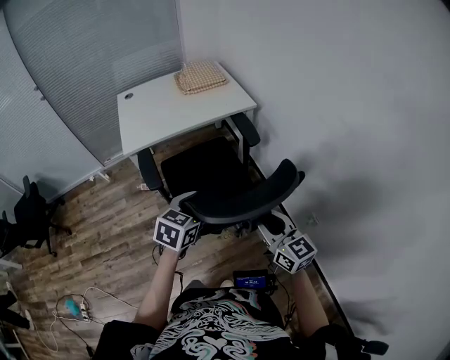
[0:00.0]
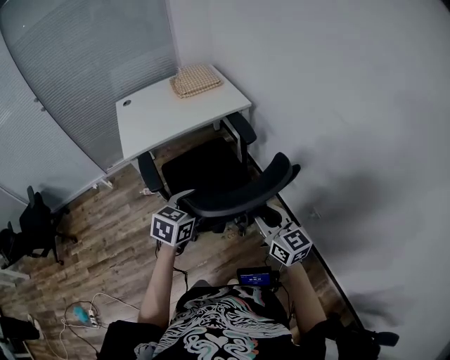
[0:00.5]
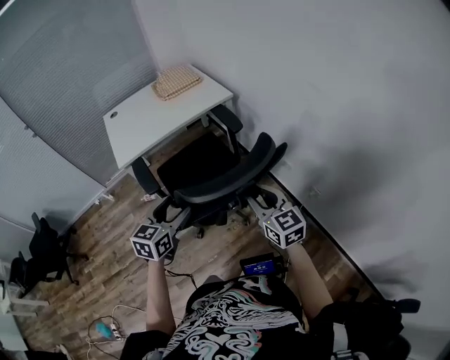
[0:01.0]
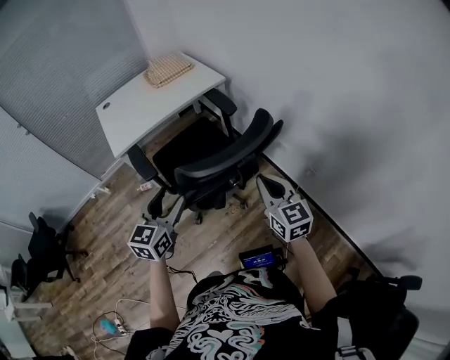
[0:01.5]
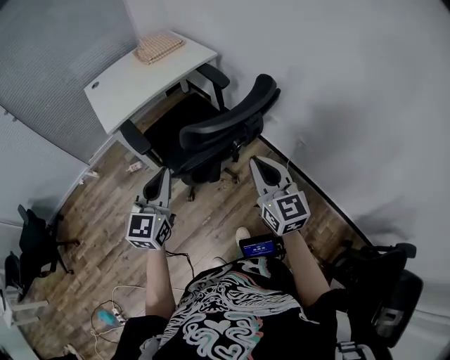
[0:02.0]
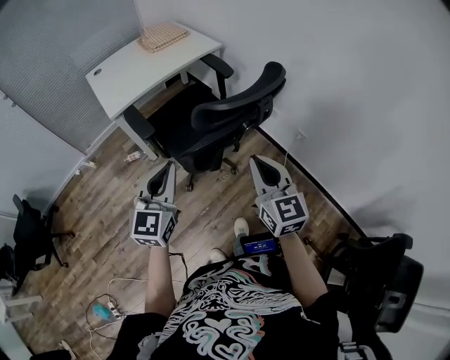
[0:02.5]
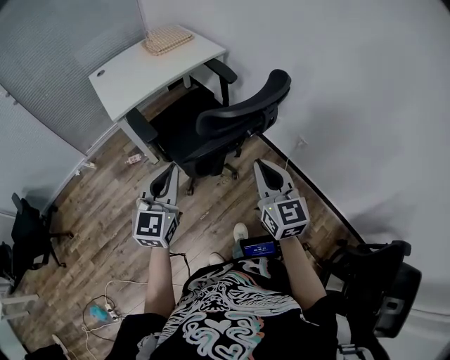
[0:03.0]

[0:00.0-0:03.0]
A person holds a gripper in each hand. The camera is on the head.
0:00.0 to 0:01.5: The left gripper goes some 10 cm backward and to the left; the right gripper travels backward by about 5 cm, turns by approximately 20 degrees, and closes up.
0:01.5 to 0:03.0: The right gripper is displaced backward and to the left by some 15 cm, while the left gripper is displaced backward by approximately 10 cm, and closes.

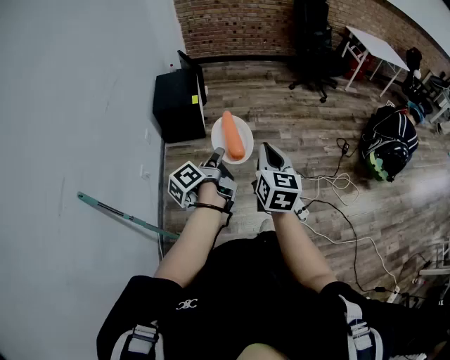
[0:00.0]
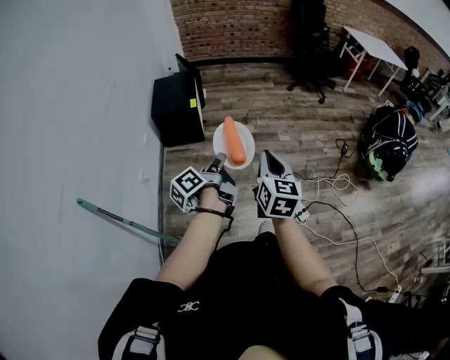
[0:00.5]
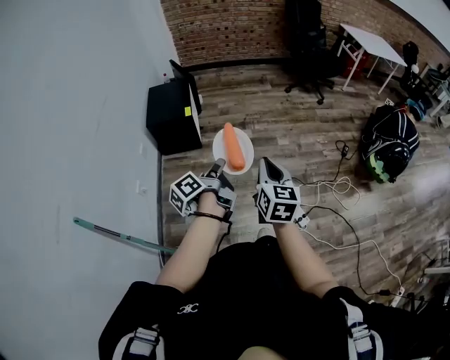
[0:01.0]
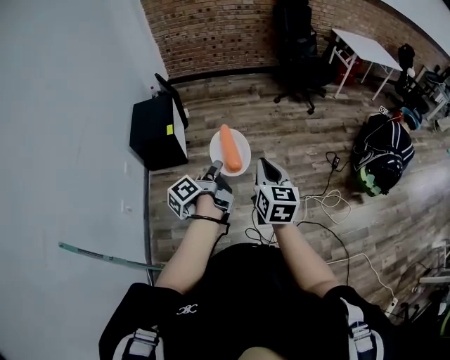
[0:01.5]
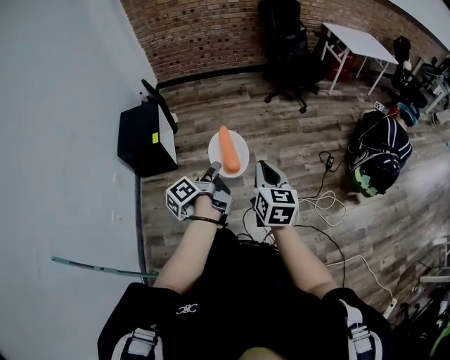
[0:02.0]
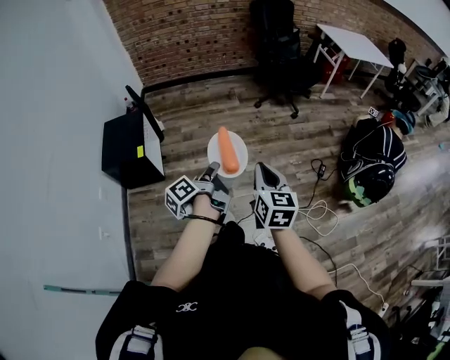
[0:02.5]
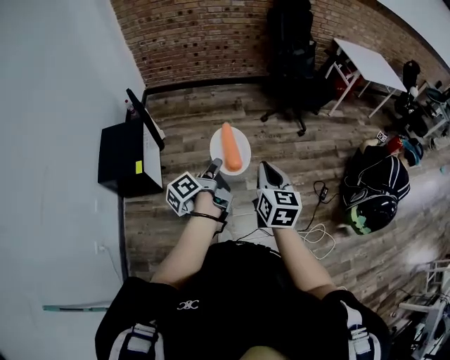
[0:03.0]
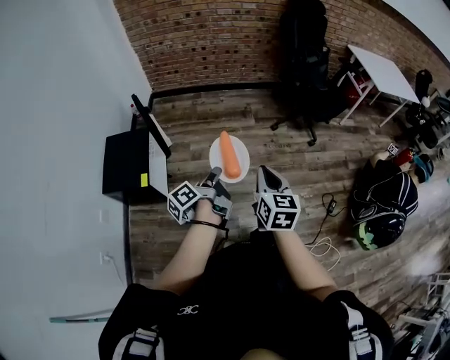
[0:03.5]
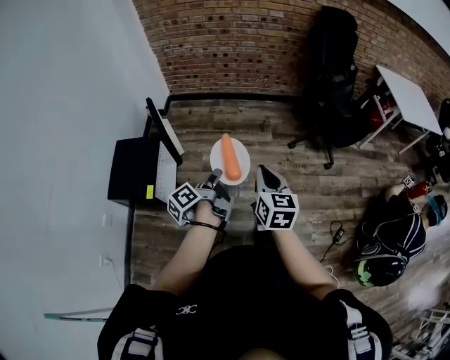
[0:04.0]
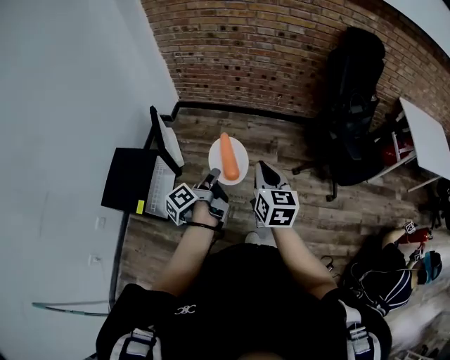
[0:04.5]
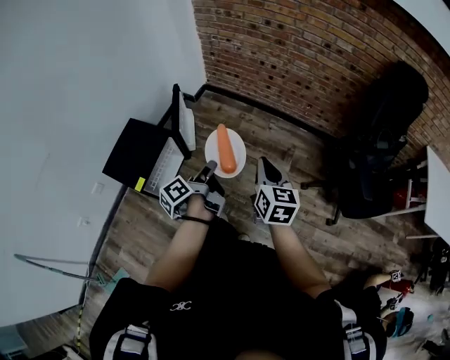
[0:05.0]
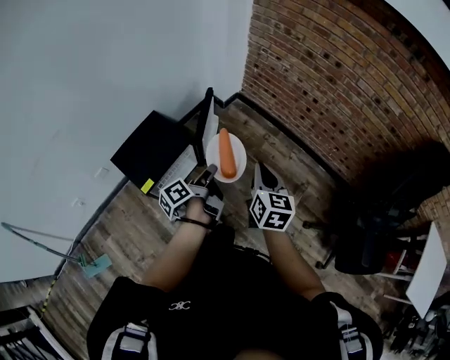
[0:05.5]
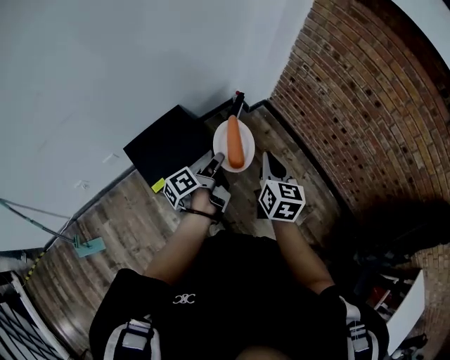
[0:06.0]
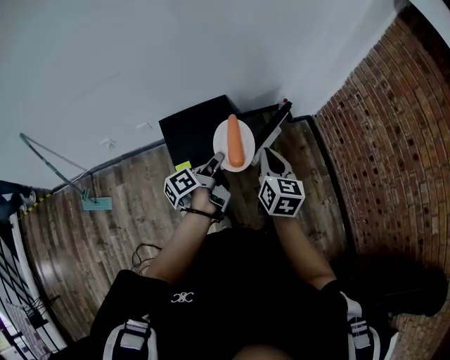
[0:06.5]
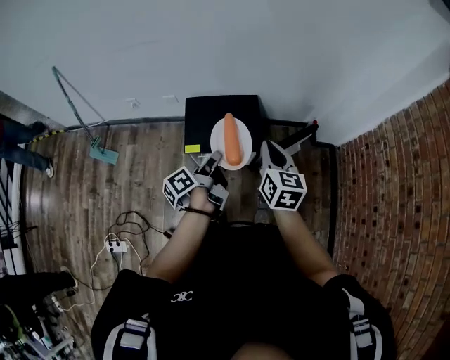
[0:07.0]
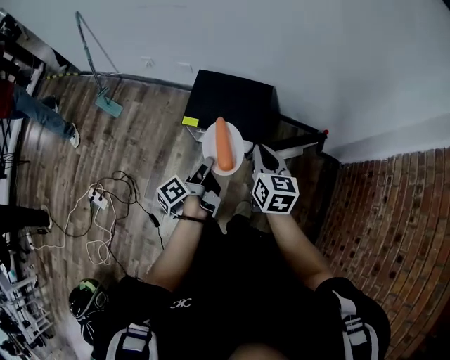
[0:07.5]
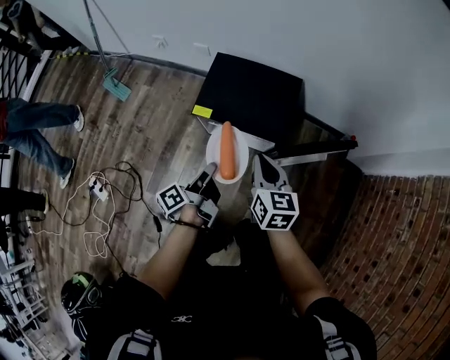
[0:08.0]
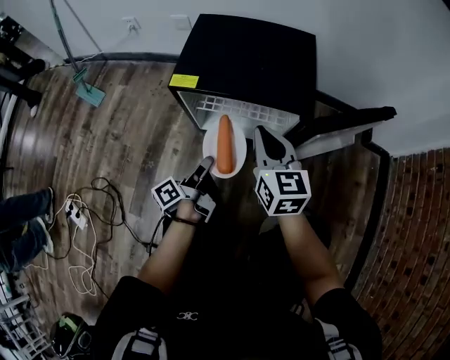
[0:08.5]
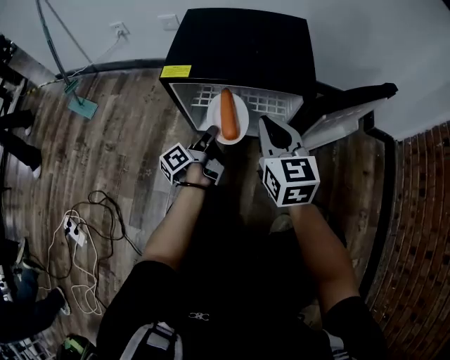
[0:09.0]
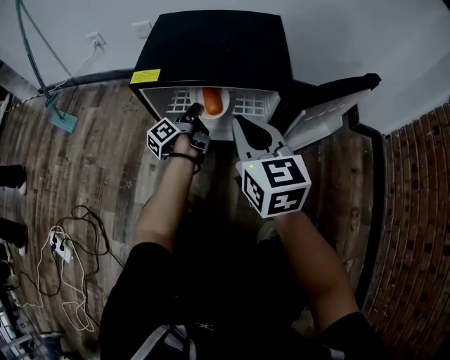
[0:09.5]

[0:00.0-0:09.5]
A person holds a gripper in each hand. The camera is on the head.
0:00.0 to 0:02.0: The right gripper moves approximately 30 cm.
0:02.0 to 0:04.0: The right gripper changes place by roughly 50 cm.
0:04.0 to 0:05.5: The right gripper moves approximately 40 cm, and changes its angle by about 30 degrees.
0:05.5 to 0:07.5: The right gripper ends up approximately 30 cm from where it was, and changes its angle by some 70 degrees.
0:07.5 to 0:09.5: The right gripper shifts roughly 35 cm downward.

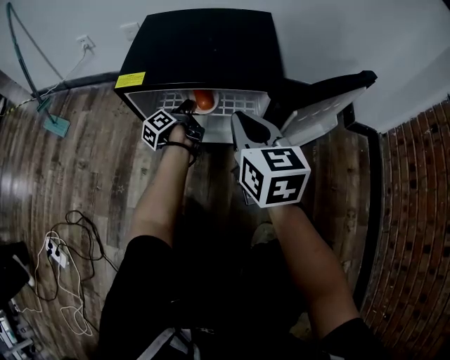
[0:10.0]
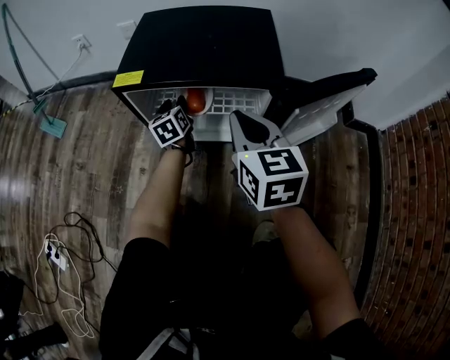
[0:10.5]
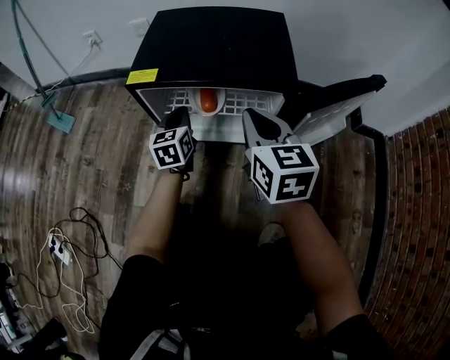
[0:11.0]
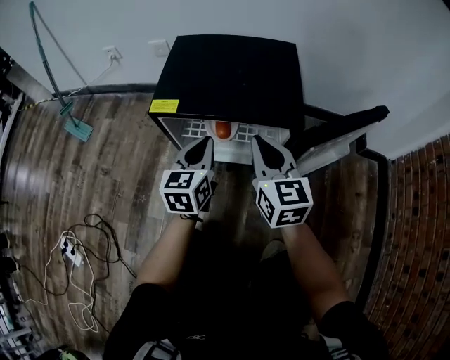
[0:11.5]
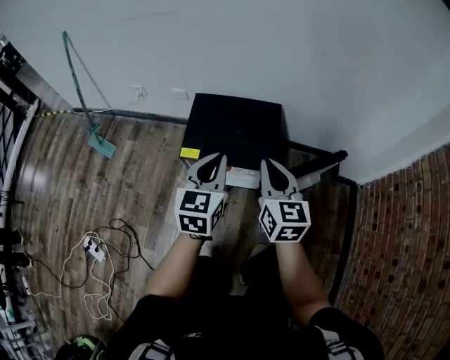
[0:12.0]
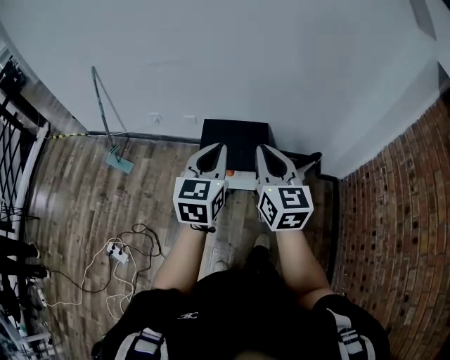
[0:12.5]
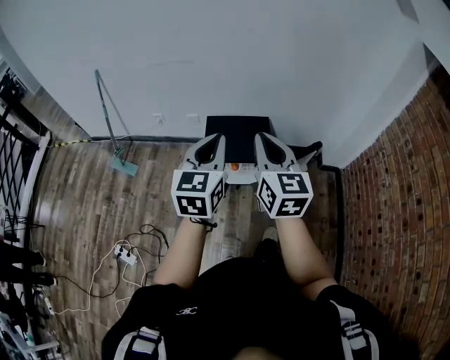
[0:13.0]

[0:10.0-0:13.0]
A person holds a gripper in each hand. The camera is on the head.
0:11.5 to 0:13.0: The right gripper travels upward by some 60 cm.

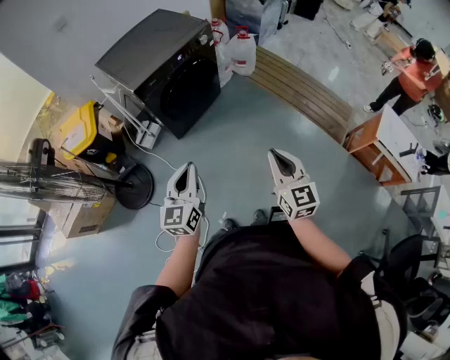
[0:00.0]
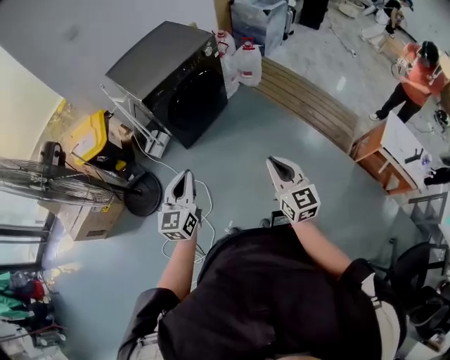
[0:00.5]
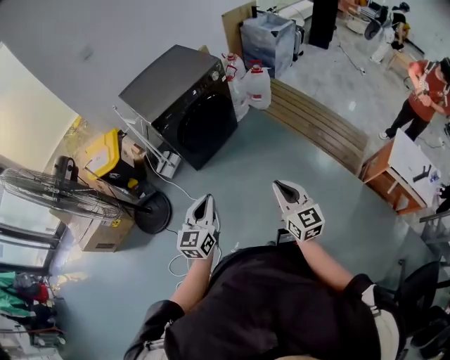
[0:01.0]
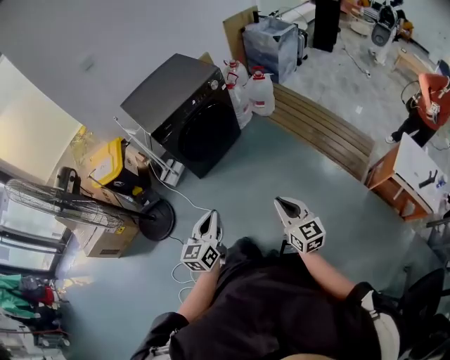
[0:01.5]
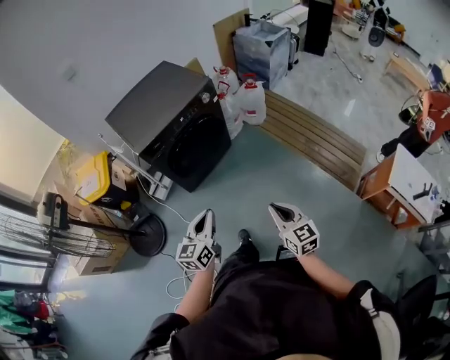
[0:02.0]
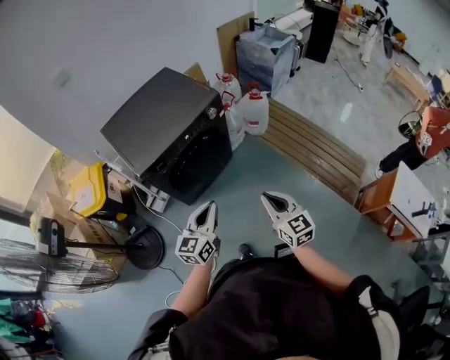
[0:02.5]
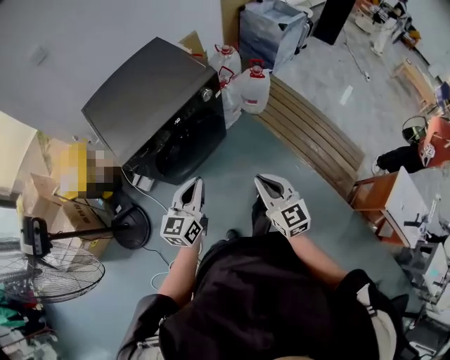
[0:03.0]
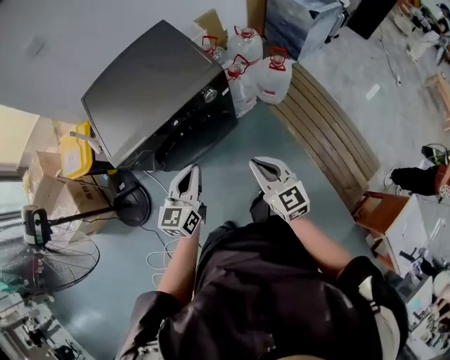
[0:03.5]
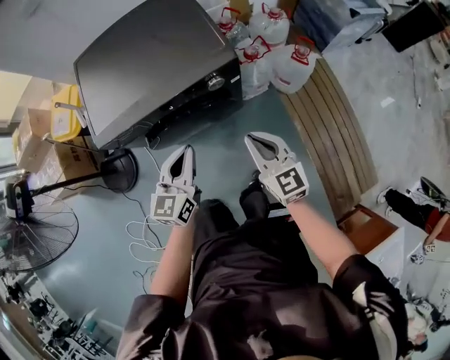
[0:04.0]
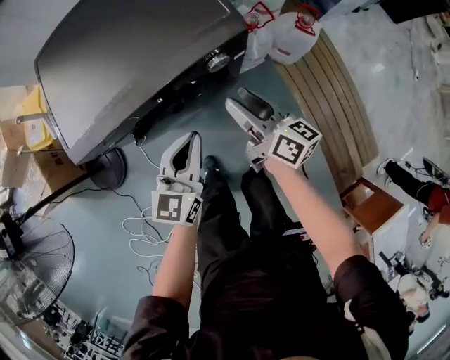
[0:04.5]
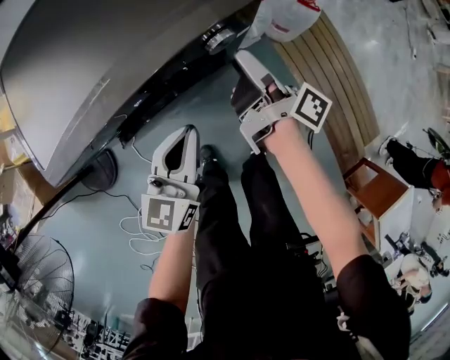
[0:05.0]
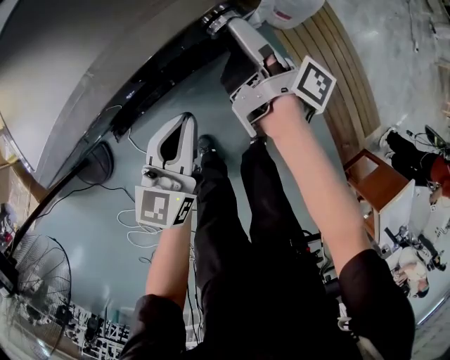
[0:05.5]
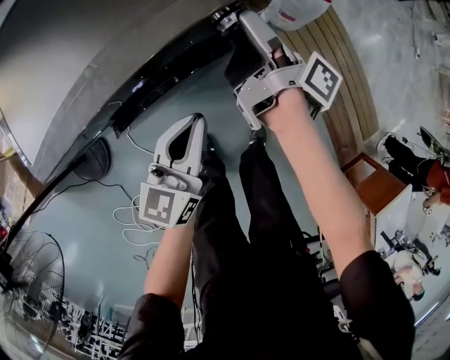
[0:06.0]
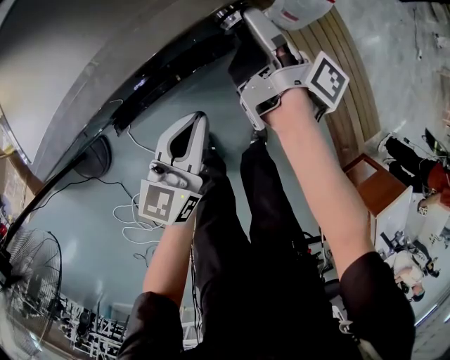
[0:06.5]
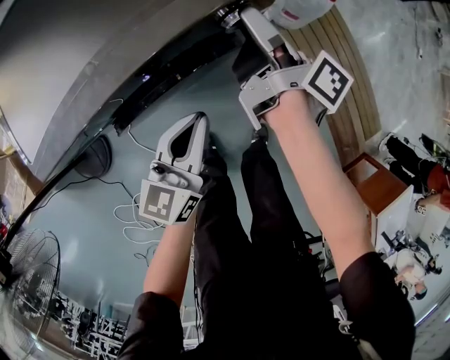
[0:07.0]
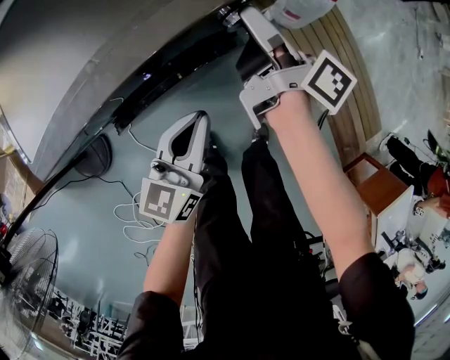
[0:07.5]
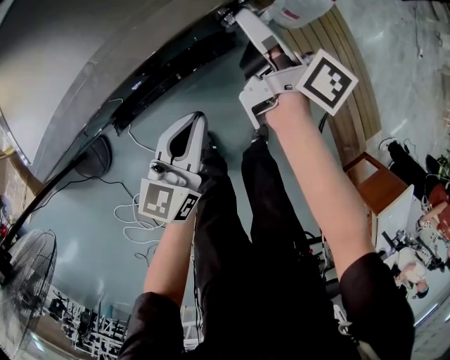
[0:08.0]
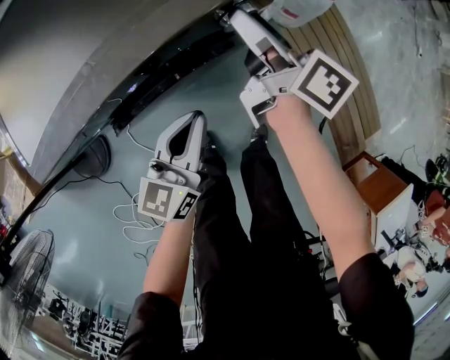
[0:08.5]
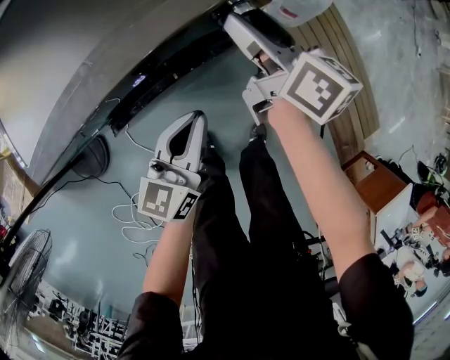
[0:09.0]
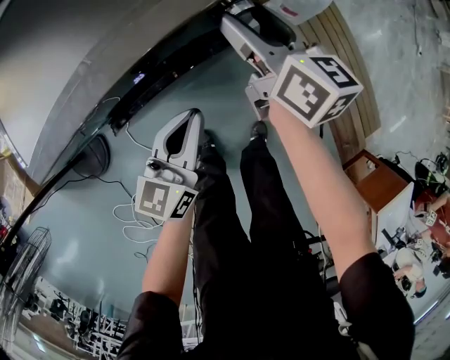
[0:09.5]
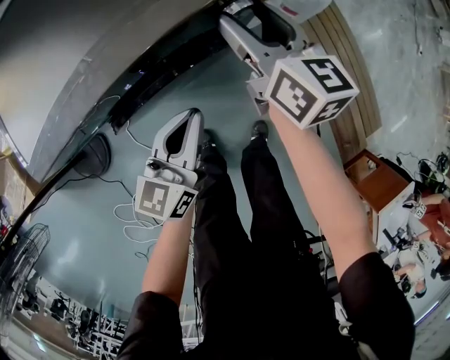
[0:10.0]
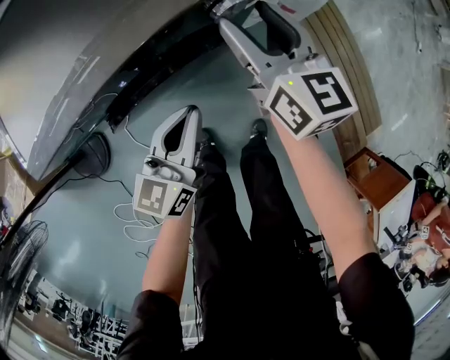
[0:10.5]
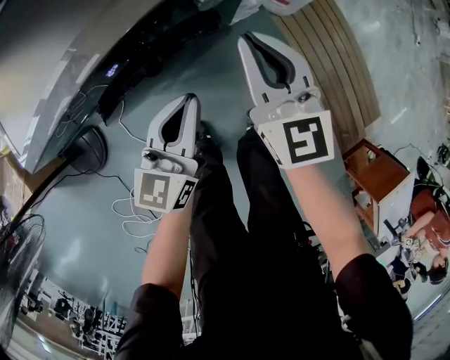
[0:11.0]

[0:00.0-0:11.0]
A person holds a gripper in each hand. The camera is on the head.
0:00.0 to 0:02.0: The left gripper moves to the right and forward, about 15 cm; the right gripper heads forward, downward and to the right, covering roughly 15 cm.
0:02.0 to 0:03.5: The grippers both shift forward by some 40 cm. The right gripper rotates some 20 degrees.
0:03.5 to 0:05.5: The left gripper shifts some 20 cm downward and forward. The right gripper goes about 35 cm forward and downward, rolls clockwise, seen from behind, by roughly 90 degrees, and opens up.
0:05.5 to 0:07.5: There are only small adjustments of the grippers.
0:07.5 to 0:09.0: The right gripper turns by about 30 degrees.
0:09.0 to 0:11.0: The right gripper shifts approximately 10 cm backward, twists some 40 degrees counterclockwise, seen from behind, and closes its fingers.
